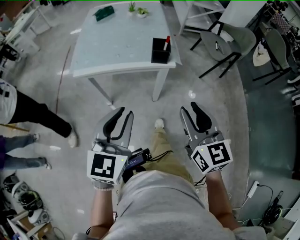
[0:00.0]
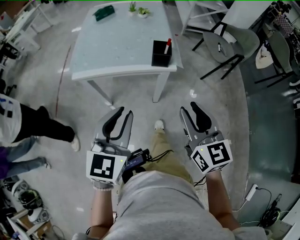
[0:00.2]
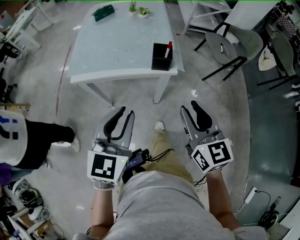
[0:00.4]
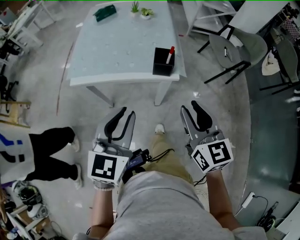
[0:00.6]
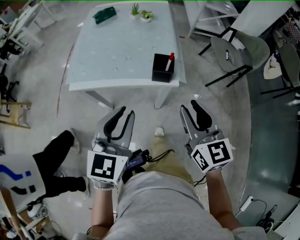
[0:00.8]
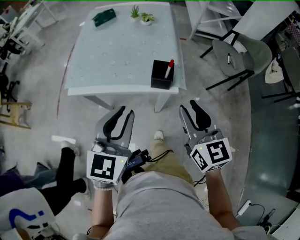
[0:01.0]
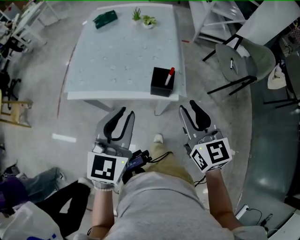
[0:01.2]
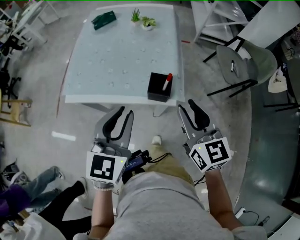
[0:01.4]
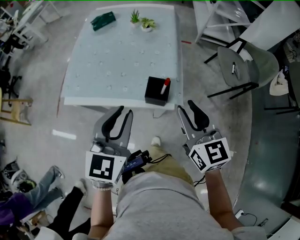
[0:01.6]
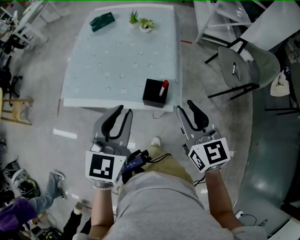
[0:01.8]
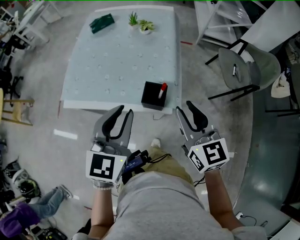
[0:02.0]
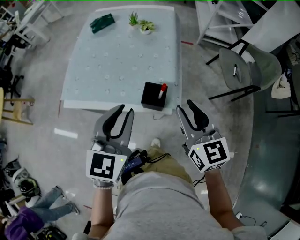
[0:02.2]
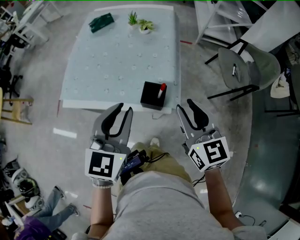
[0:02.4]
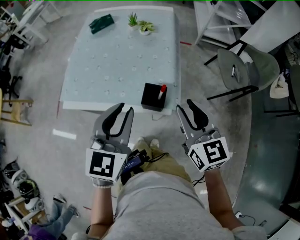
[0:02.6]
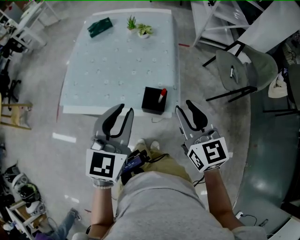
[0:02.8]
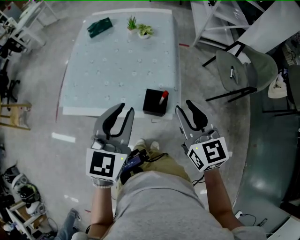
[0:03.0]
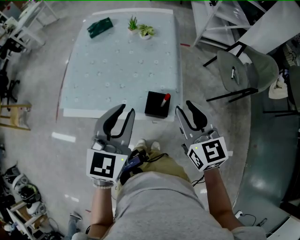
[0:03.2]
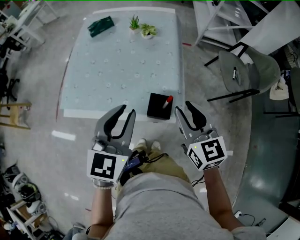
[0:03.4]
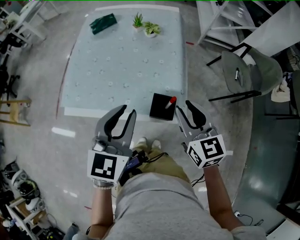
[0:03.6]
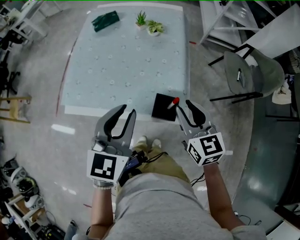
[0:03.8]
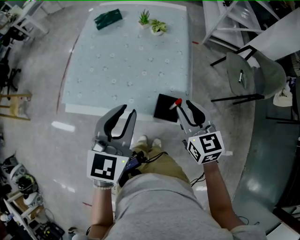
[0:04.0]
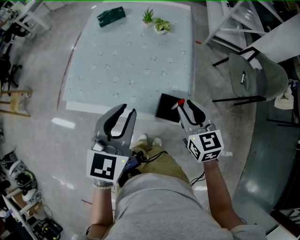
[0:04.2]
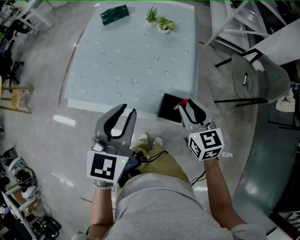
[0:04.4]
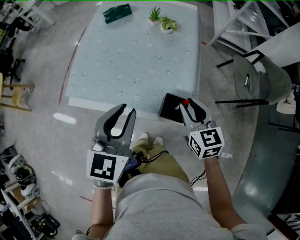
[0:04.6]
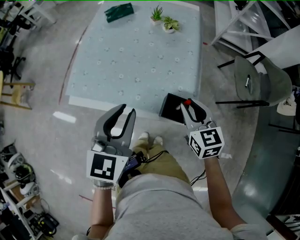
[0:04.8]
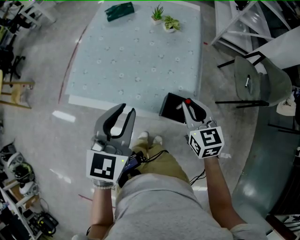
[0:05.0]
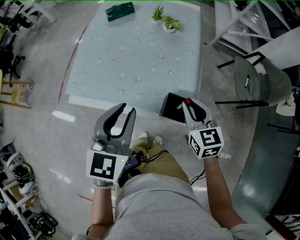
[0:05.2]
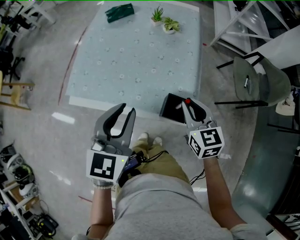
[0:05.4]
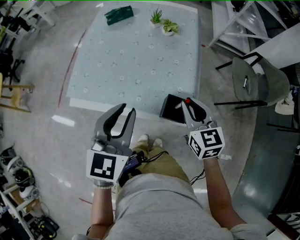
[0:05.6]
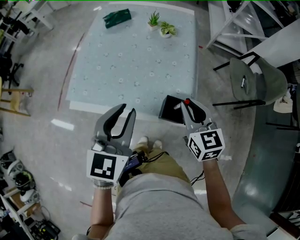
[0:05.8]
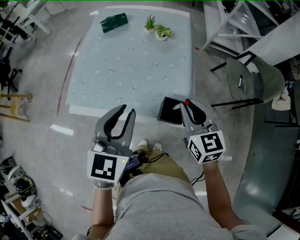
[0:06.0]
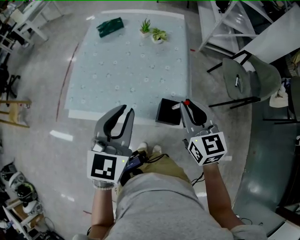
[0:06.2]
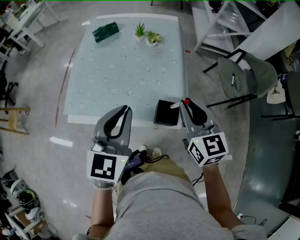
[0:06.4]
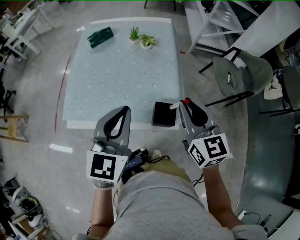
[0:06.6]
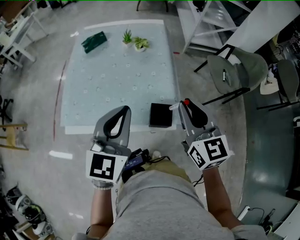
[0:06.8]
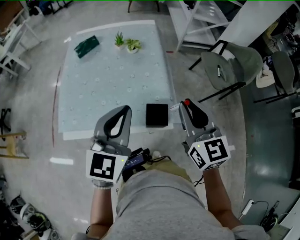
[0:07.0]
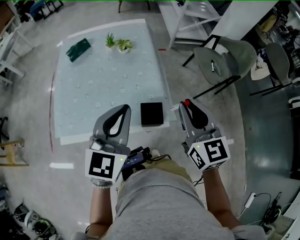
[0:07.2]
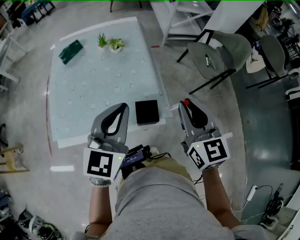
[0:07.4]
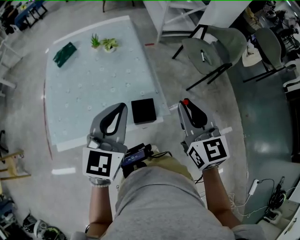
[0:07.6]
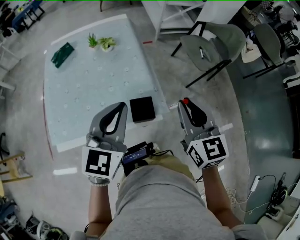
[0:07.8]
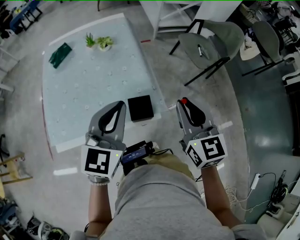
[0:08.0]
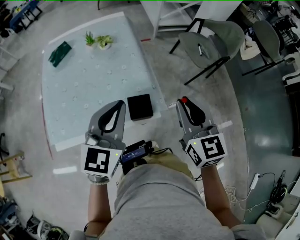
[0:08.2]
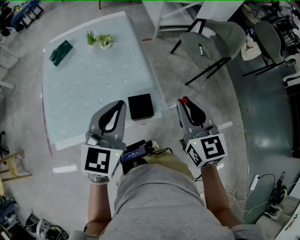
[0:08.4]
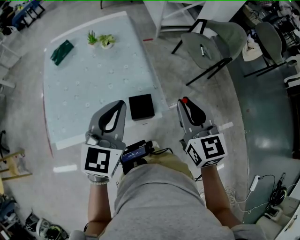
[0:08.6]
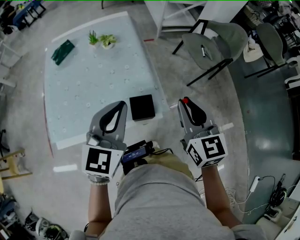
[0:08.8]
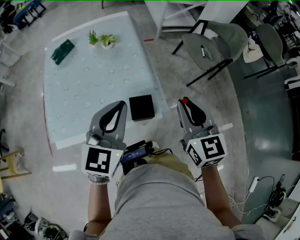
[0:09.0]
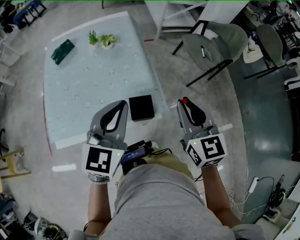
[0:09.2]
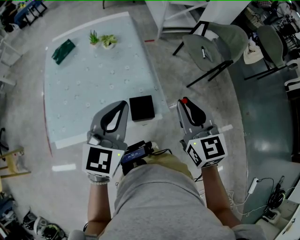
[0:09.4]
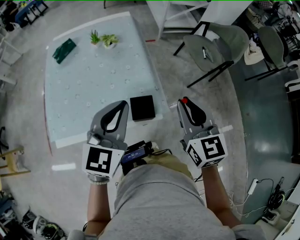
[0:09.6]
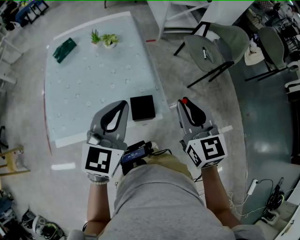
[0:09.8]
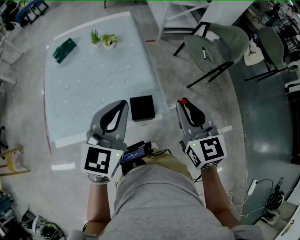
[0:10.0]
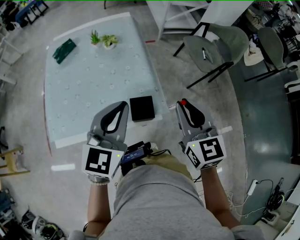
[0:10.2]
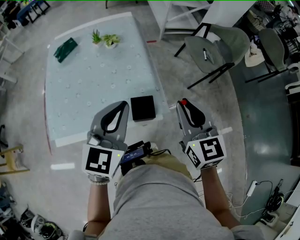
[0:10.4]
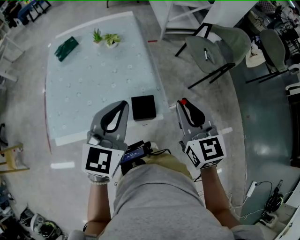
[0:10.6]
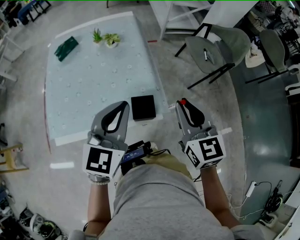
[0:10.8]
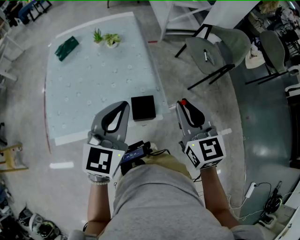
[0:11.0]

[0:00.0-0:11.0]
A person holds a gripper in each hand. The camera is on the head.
0.0 to 1.6 s: Both grippers move forward, about 25 cm.
1.6 to 3.2 s: Both grippers move forward, approximately 5 cm.
3.2 to 4.8 s: The left gripper moves to the left, about 5 cm. Meanwhile the right gripper shifts some 10 cm downward and forward.
4.8 to 6.2 s: The right gripper heads upward, covering roughly 10 cm.
6.2 to 7.8 s: The grippers both shift to the right by approximately 10 cm. The right gripper rotates some 20 degrees, while the left gripper swivels roughly 20 degrees.
7.8 to 9.4 s: Both grippers stay put.
9.4 to 11.0 s: The two grippers keep their place.

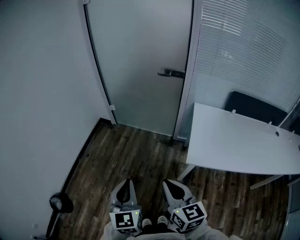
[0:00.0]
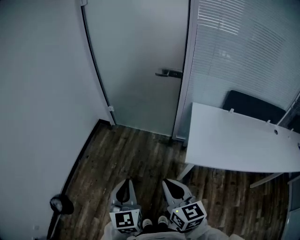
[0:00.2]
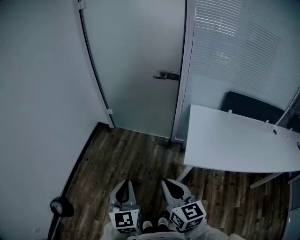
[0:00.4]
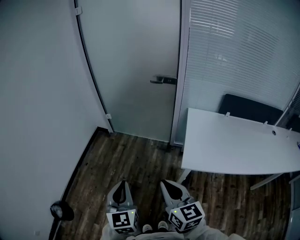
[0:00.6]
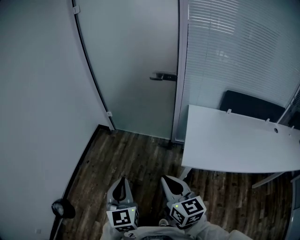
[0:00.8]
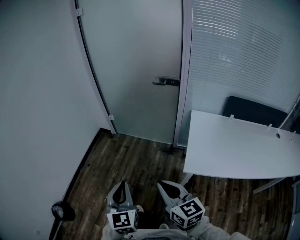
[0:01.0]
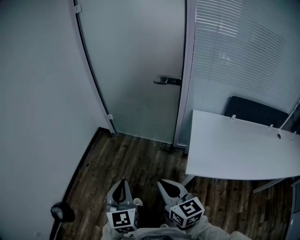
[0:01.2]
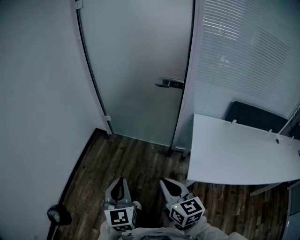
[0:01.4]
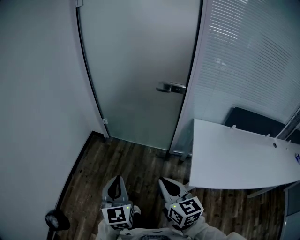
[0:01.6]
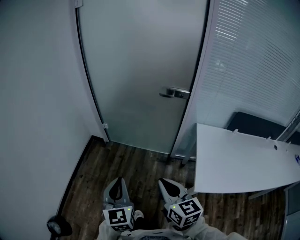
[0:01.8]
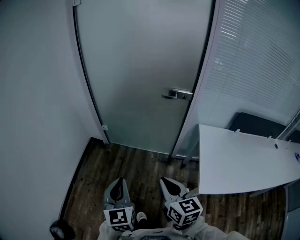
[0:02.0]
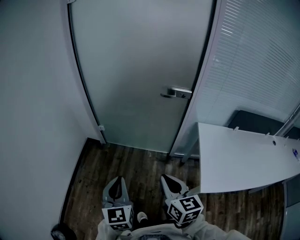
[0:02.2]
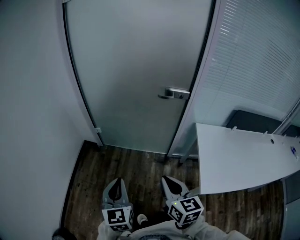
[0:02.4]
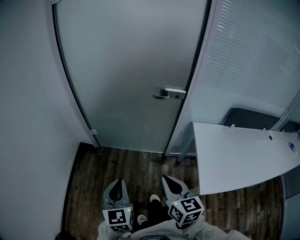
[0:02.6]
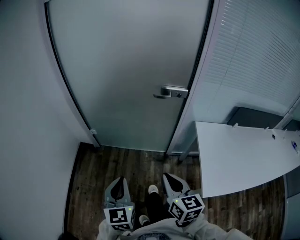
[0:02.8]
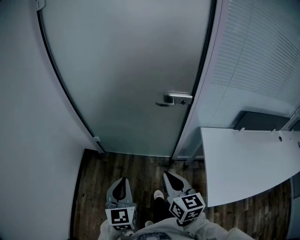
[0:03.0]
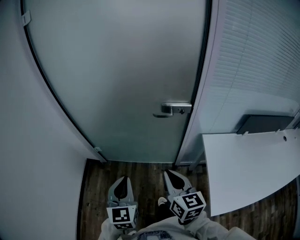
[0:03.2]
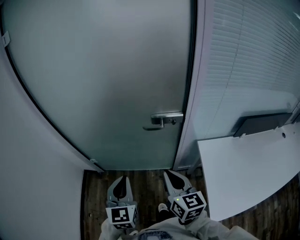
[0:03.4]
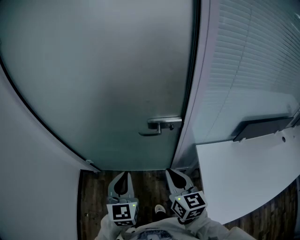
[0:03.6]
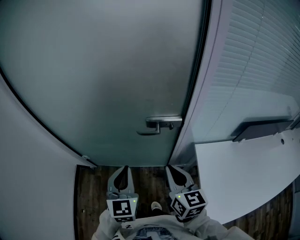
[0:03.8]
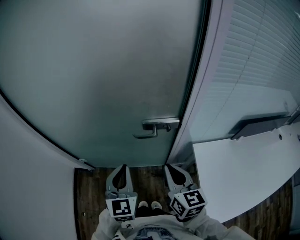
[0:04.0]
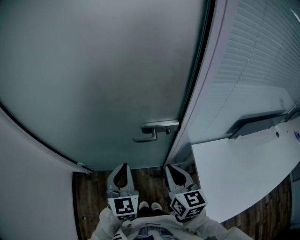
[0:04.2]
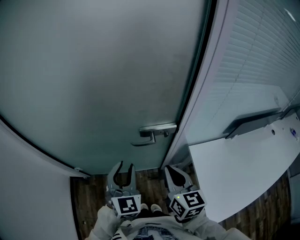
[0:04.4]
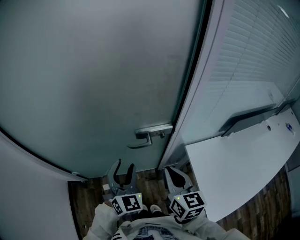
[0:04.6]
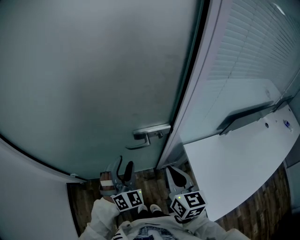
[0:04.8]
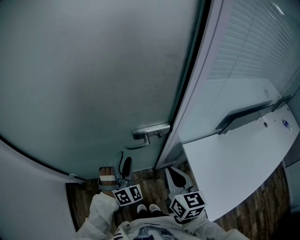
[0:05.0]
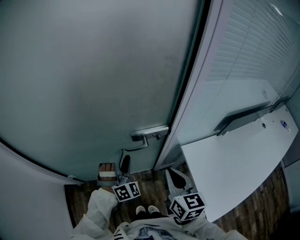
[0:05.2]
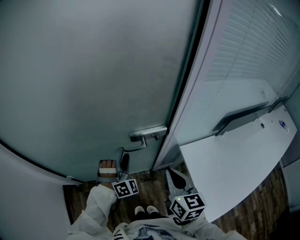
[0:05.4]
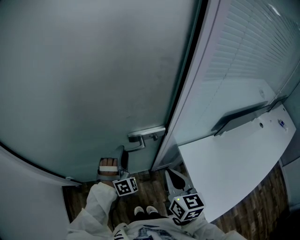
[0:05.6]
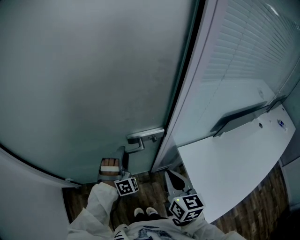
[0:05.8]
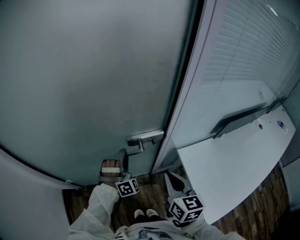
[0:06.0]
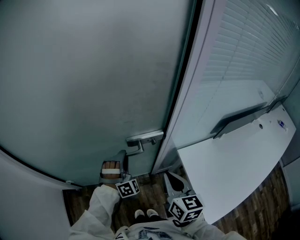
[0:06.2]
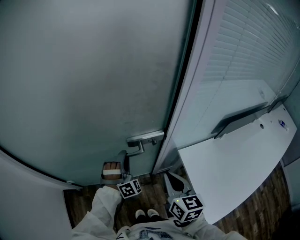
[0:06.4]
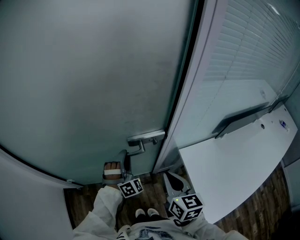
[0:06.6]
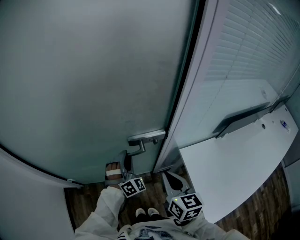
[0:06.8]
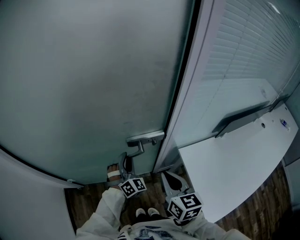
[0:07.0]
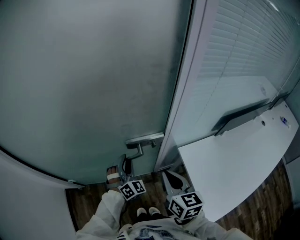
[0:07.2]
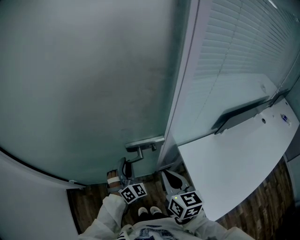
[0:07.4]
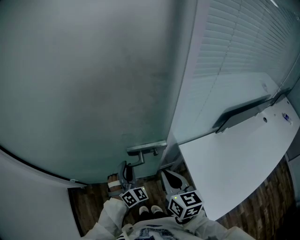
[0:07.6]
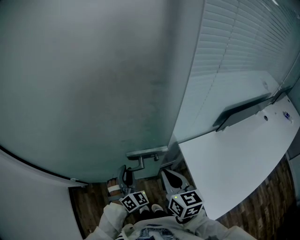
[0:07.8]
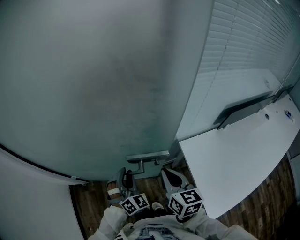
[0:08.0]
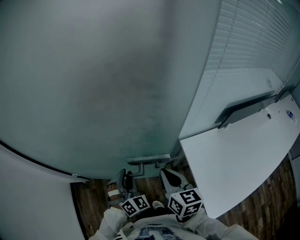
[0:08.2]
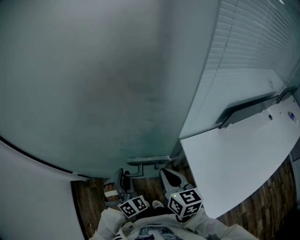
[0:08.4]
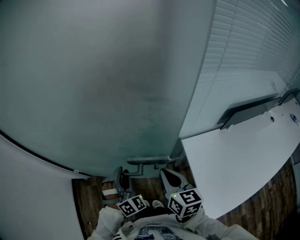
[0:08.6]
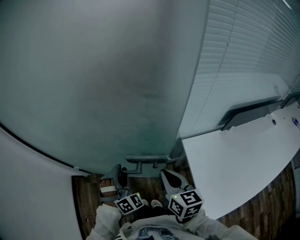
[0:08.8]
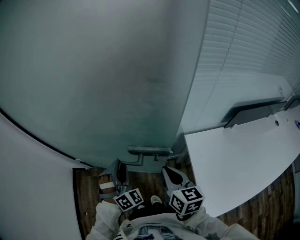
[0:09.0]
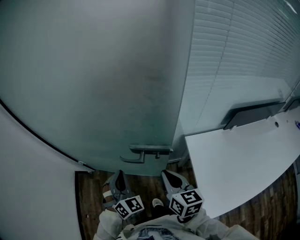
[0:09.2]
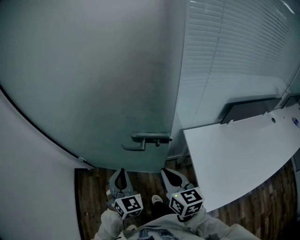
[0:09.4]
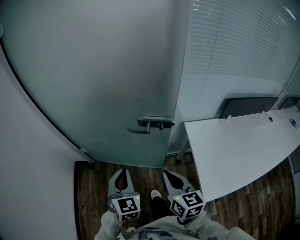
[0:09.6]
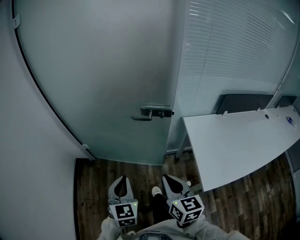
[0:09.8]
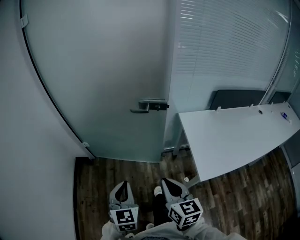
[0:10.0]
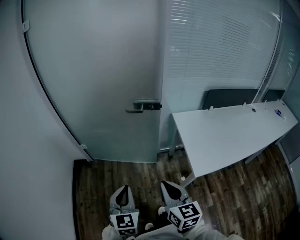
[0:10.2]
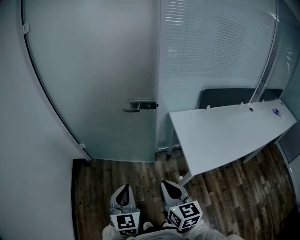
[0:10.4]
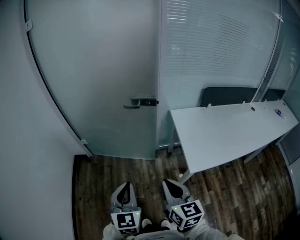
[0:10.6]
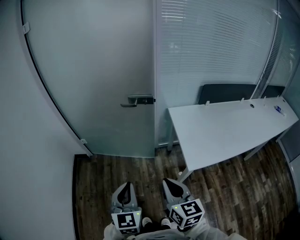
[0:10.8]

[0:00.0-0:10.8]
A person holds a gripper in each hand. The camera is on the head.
0.0 to 1.6 s: Both grippers move forward, approximately 20 cm.
1.6 to 3.0 s: The grippers both shift forward by approximately 25 cm.
3.0 to 4.6 s: The two grippers go about 30 cm forward and to the right. The left gripper changes its angle by some 40 degrees, and opens its fingers.
4.6 to 6.2 s: The left gripper shifts some 10 cm forward and downward, twists some 40 degrees clockwise, seen from behind, and closes its fingers.
6.2 to 7.8 s: The left gripper moves backward, approximately 10 cm, and turns by about 30 degrees.
7.8 to 9.2 s: The right gripper is displaced backward by some 5 cm, while the left gripper heads backward and to the left, covering roughly 10 cm, and closes up.
9.2 to 10.8 s: The pair of grippers is taken backward, about 40 cm. The left gripper turns by roughly 40 degrees.

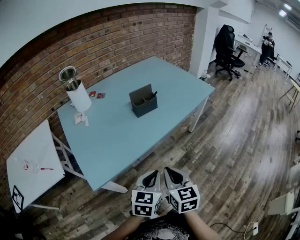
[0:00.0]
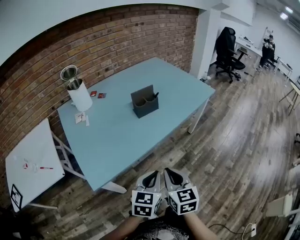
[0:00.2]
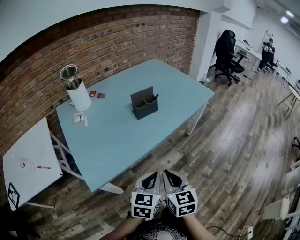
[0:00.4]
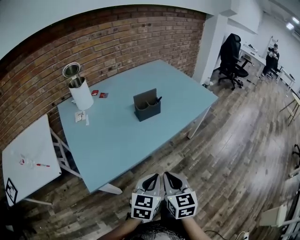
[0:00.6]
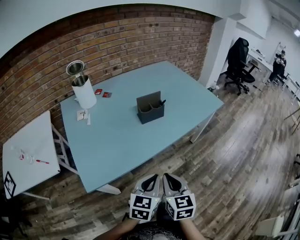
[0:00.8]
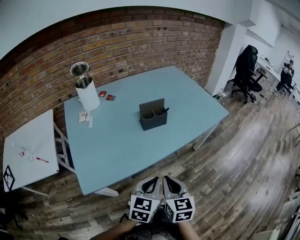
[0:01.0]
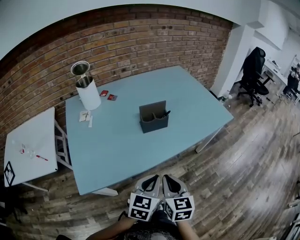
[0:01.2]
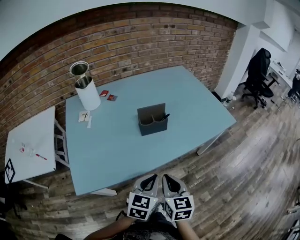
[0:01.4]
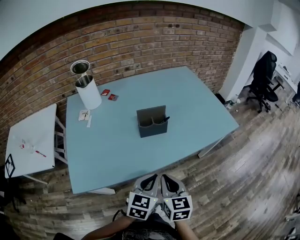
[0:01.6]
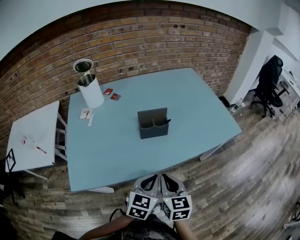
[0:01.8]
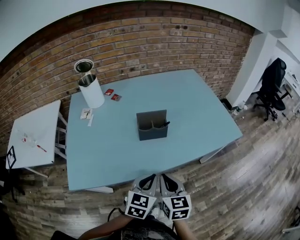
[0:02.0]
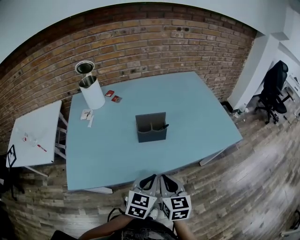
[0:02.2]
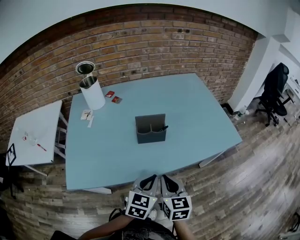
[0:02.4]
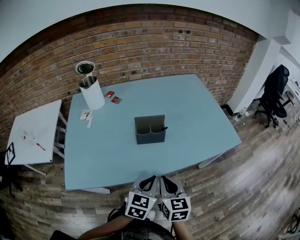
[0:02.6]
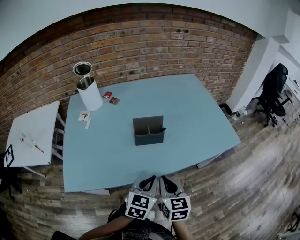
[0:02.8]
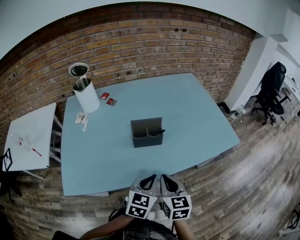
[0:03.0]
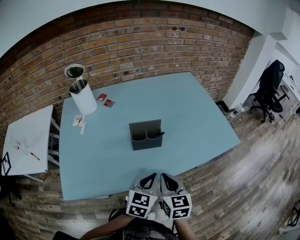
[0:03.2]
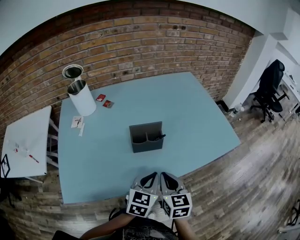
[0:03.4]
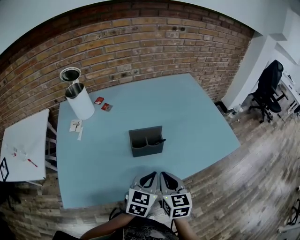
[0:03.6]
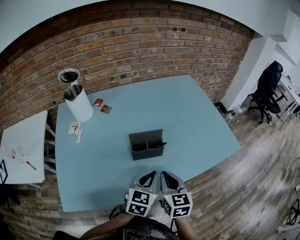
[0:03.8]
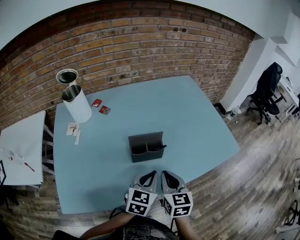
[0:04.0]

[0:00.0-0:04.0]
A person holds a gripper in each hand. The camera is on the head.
0.0 to 1.4 s: The two grippers go some 15 cm forward.
1.4 to 2.6 s: The right gripper is displaced forward by approximately 5 cm, while the left gripper heads forward and to the right, covering some 10 cm.
2.6 to 4.0 s: The grippers both shift forward by about 10 cm.
